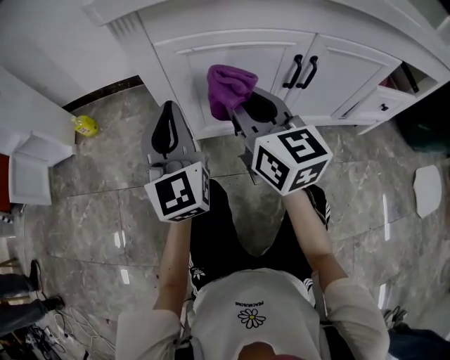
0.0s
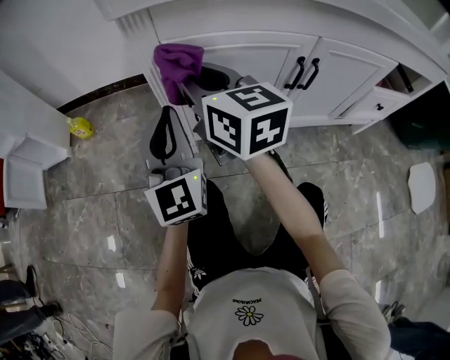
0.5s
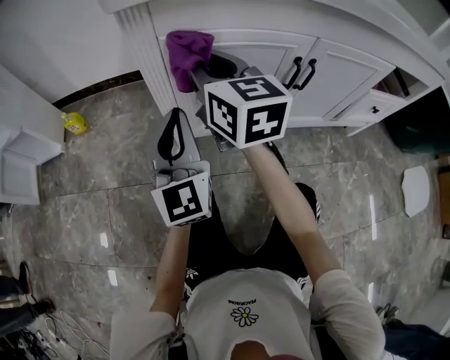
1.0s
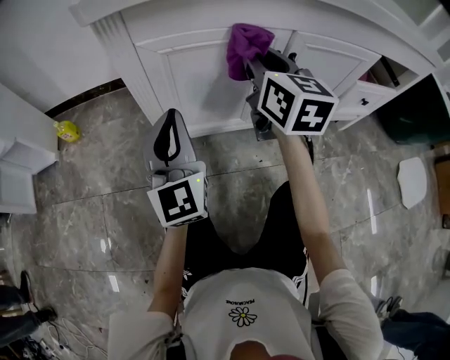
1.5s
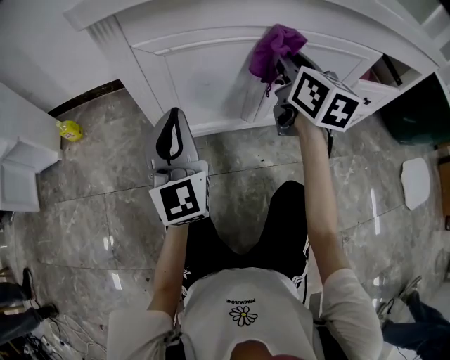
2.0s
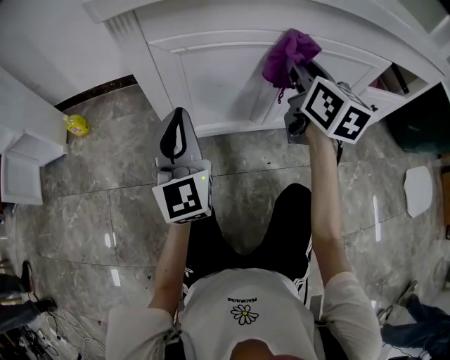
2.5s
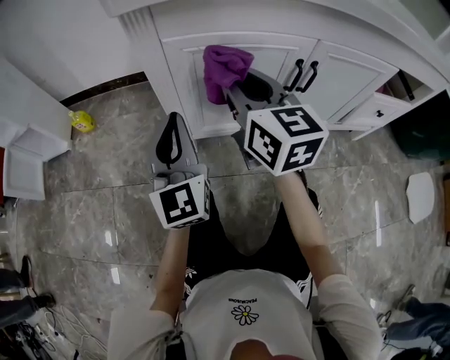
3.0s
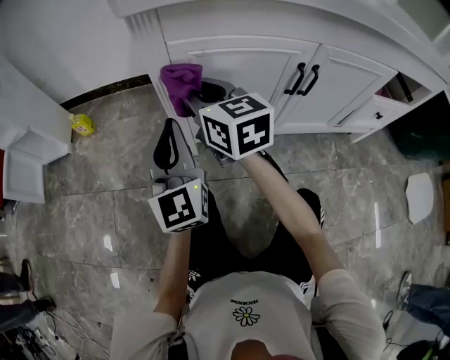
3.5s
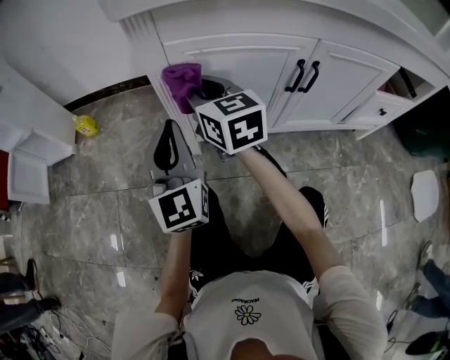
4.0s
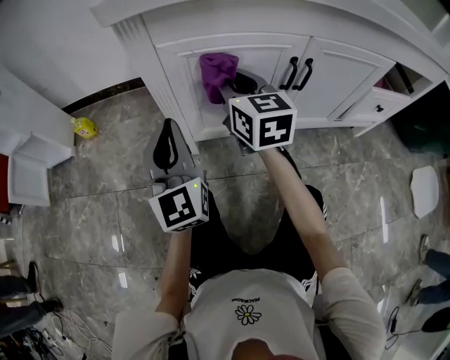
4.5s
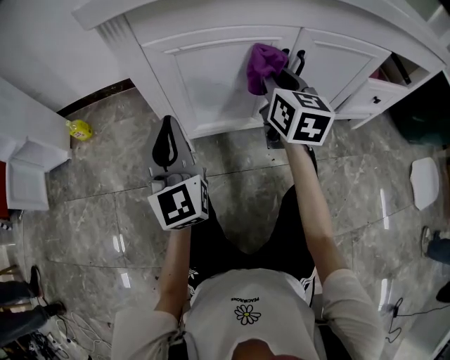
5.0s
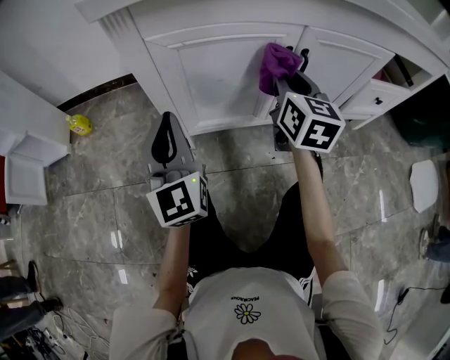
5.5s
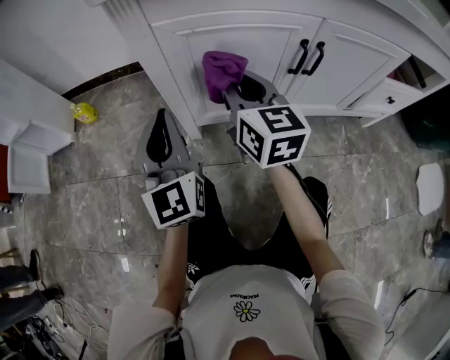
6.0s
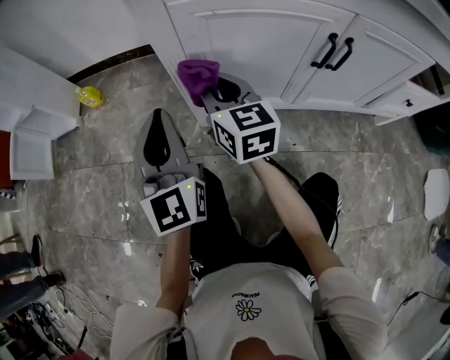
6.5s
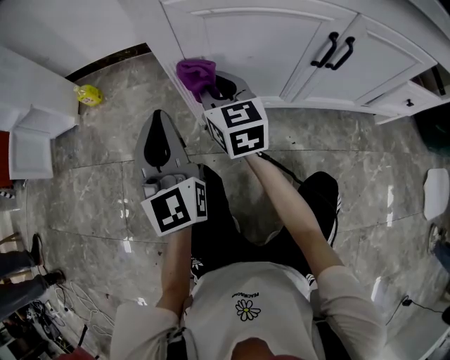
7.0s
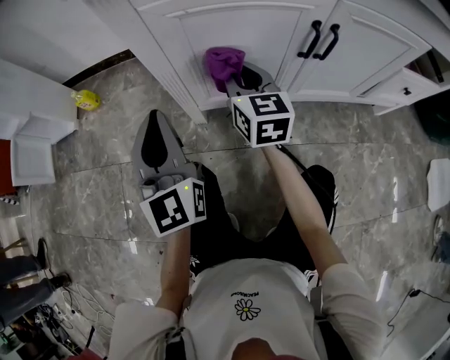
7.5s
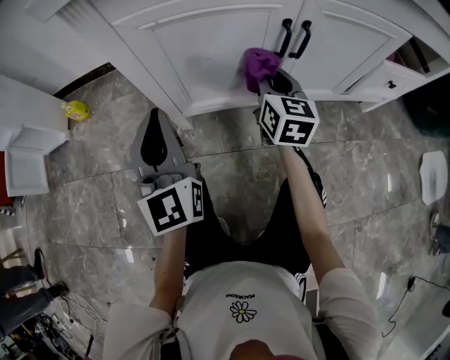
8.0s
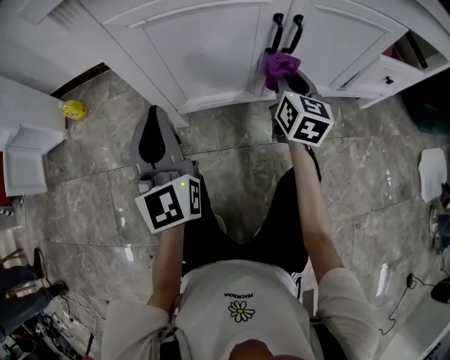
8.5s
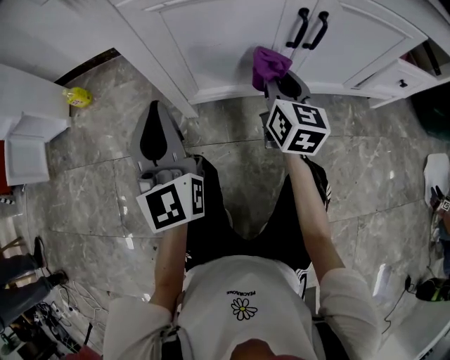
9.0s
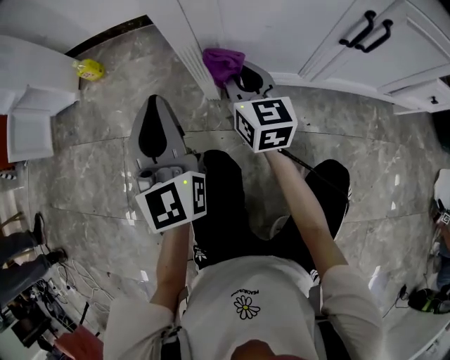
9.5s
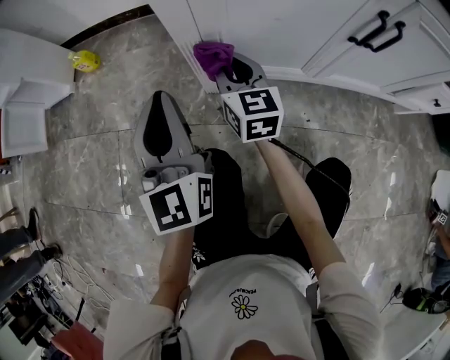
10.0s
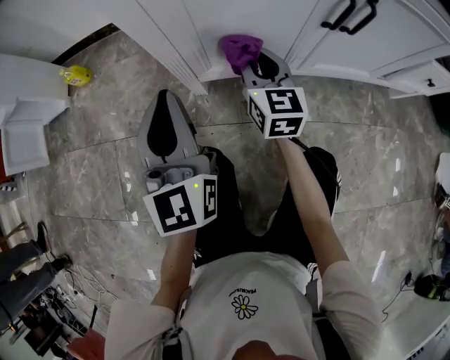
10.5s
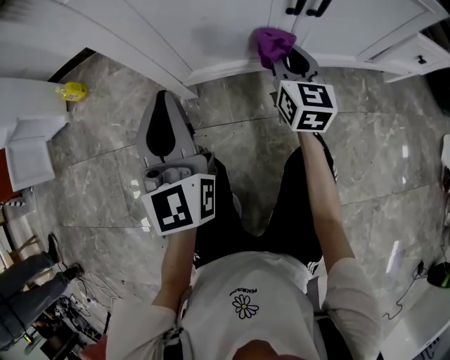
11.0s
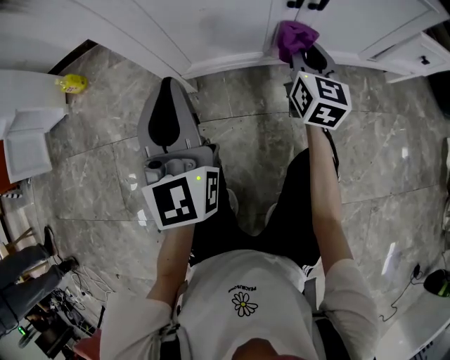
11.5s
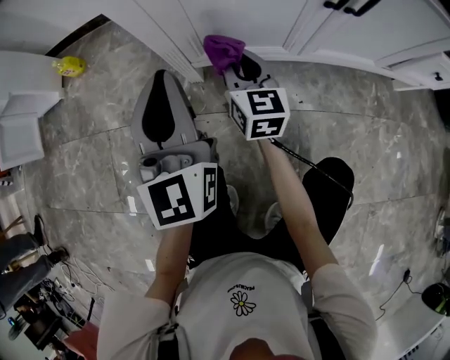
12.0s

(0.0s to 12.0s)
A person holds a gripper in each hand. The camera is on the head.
0.0s - 2.0s: The left gripper moves about 5 cm. Meanwhile the right gripper goes approximately 15 cm to the right, and swivels roughly 20 degrees.
2.0s - 4.0s: The right gripper moves to the left, roughly 25 cm, and rotates approximately 30 degrees. Meanwhile the left gripper goes about 5 cm to the left.
4.0s - 6.0s: The right gripper travels to the right by roughly 10 cm.
6.0s - 8.0s: The right gripper travels to the right and downward by approximately 15 cm.
8.0s - 10.0s: The left gripper moves to the left, approximately 10 cm. Meanwhile the right gripper travels to the left by about 20 cm, and rotates about 20 degrees.
10.0s - 12.0s: The left gripper moves to the right, about 5 cm, while the right gripper reaches some 25 cm to the right, then returns.

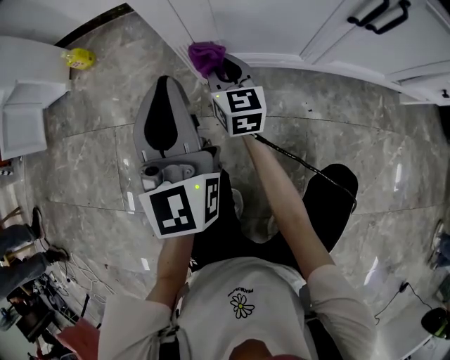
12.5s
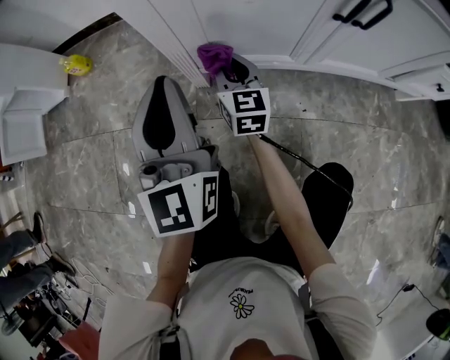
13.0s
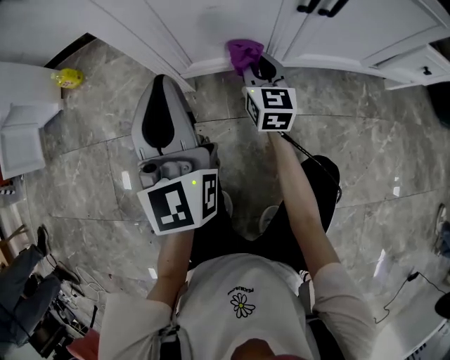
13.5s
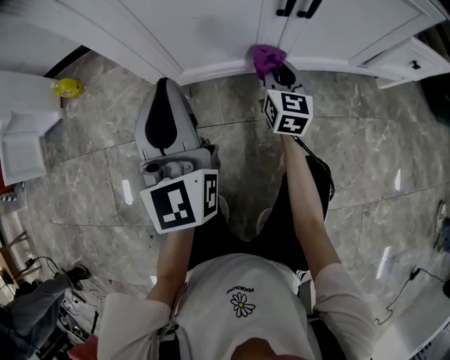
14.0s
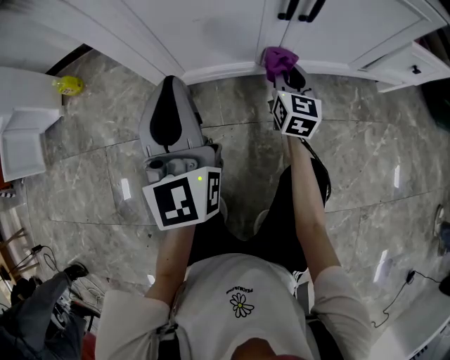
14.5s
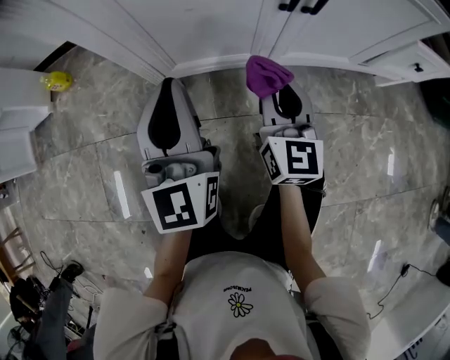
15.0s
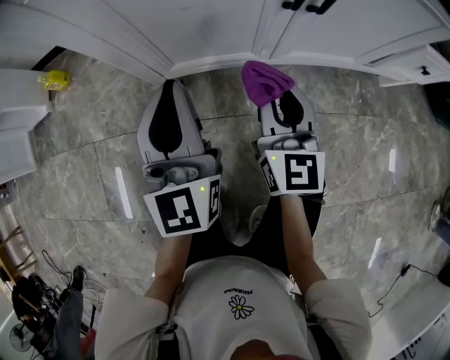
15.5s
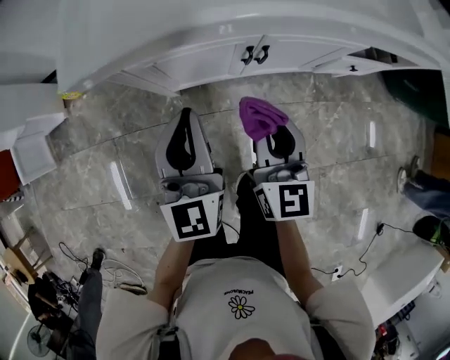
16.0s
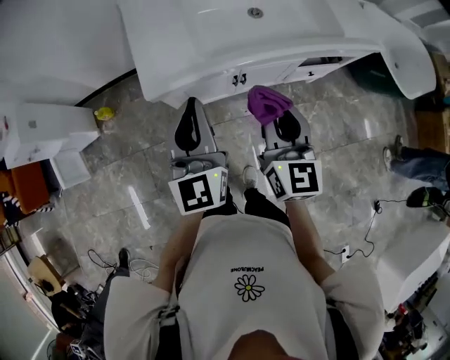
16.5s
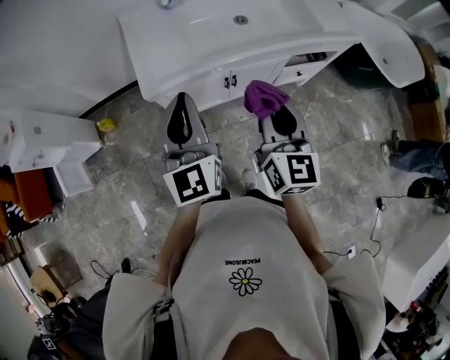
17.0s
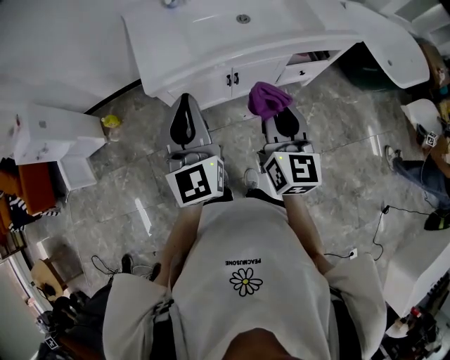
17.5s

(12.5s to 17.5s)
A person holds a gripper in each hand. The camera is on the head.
12.5s - 15.0s: The right gripper goes roughly 25 cm to the right, backward and upward, and rotates about 20 degrees, while the left gripper heads to the right, covering approximately 10 cm.
15.0s - 17.5s: The grippers both shift upward by about 60 cm.

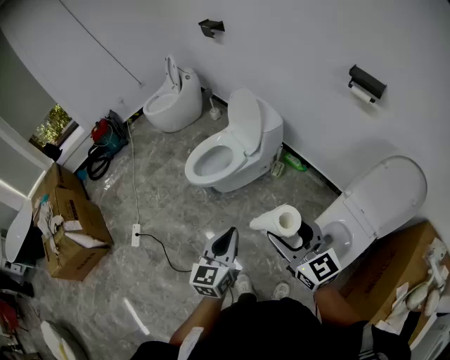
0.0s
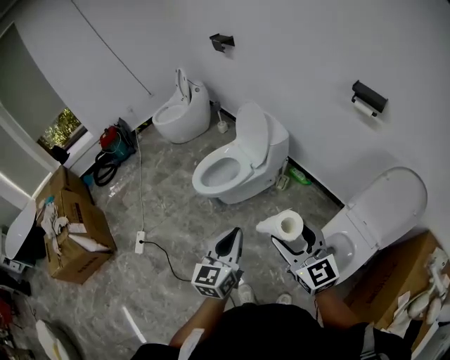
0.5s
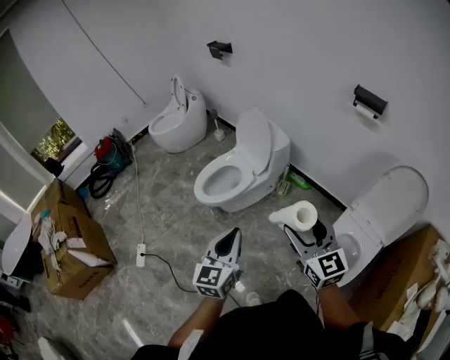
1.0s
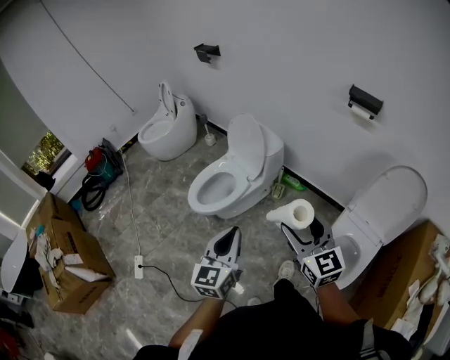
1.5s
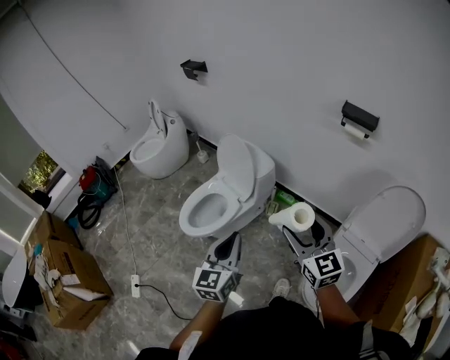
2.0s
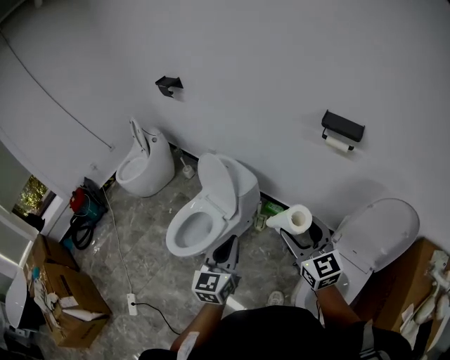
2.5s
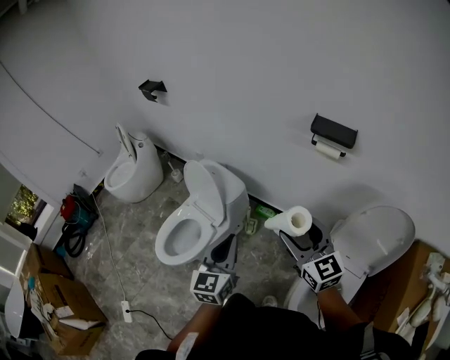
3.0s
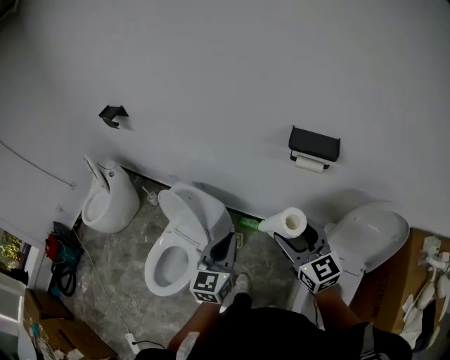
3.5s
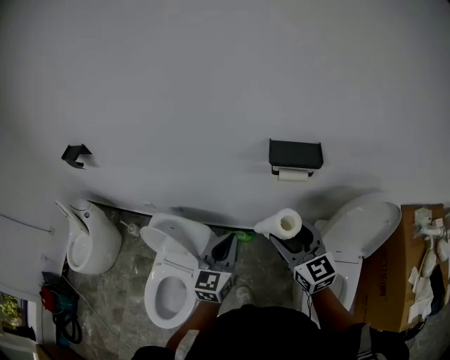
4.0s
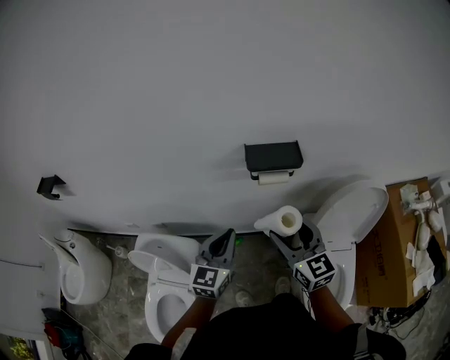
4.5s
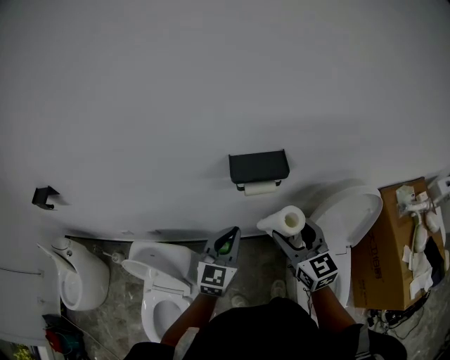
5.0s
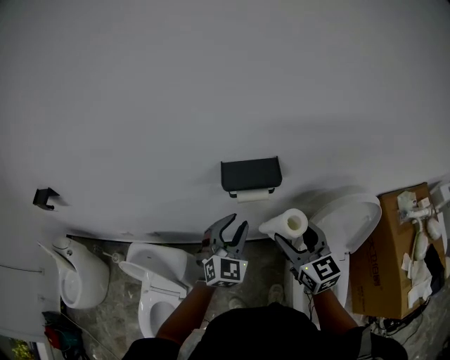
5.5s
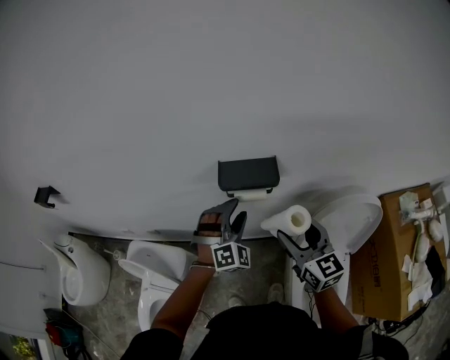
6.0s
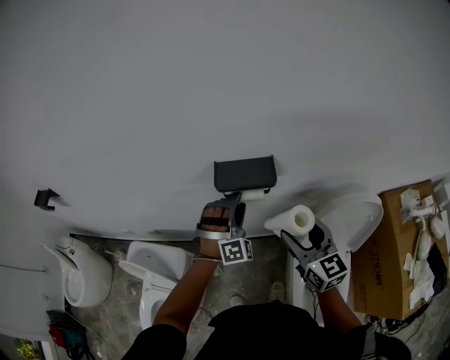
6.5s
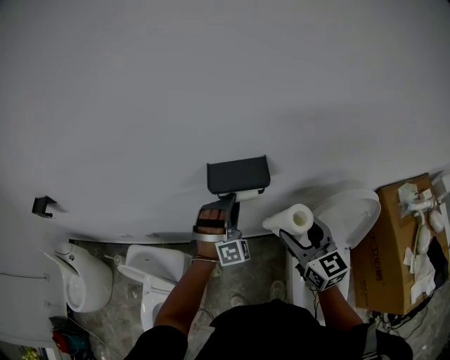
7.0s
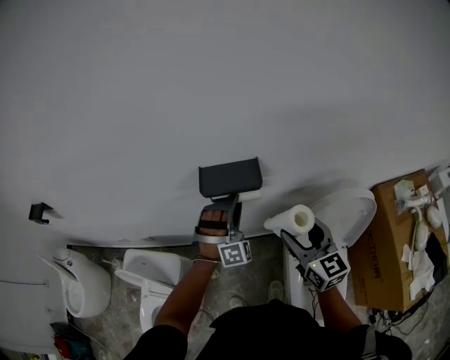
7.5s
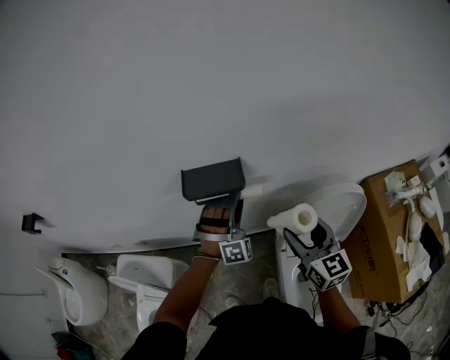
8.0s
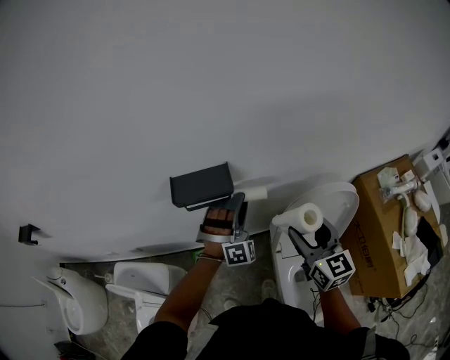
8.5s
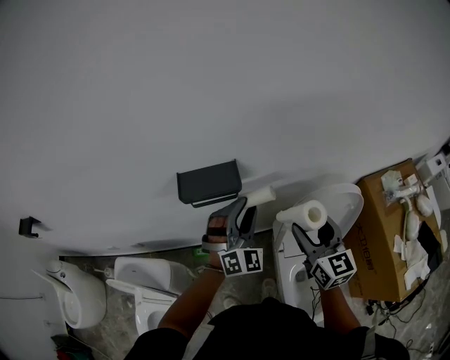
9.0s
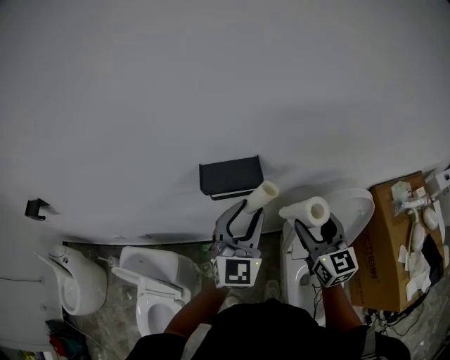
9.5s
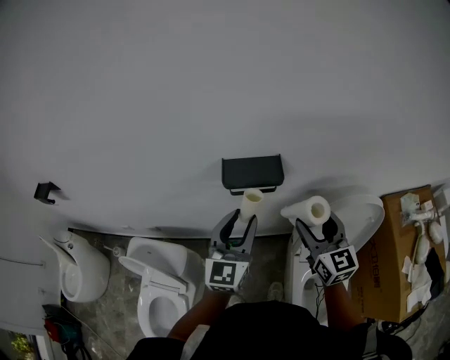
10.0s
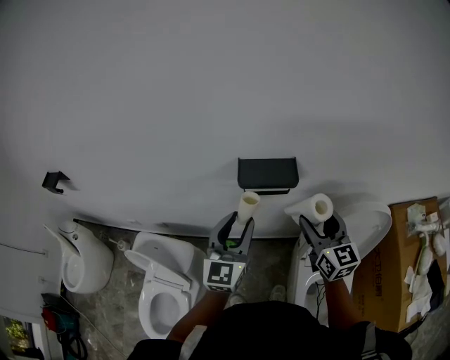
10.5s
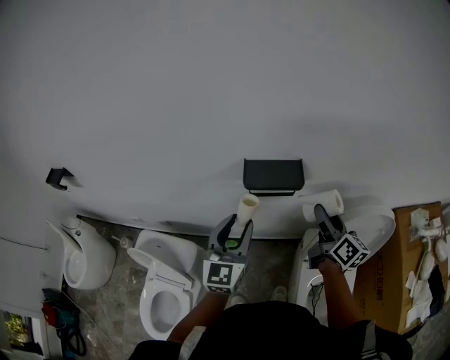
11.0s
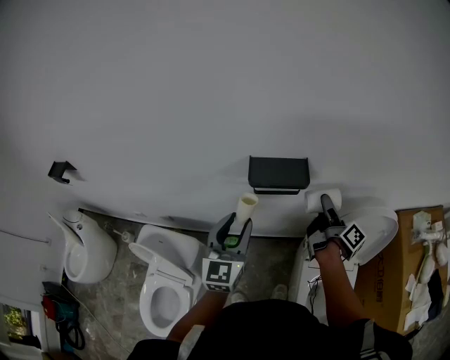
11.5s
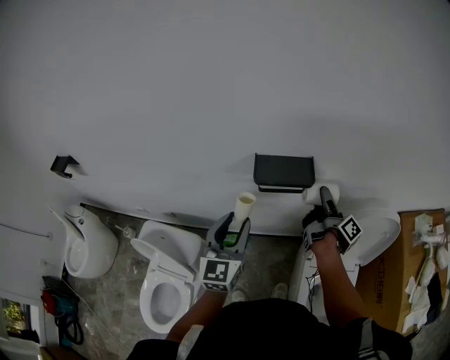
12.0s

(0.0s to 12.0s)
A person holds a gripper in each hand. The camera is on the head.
0.0s - 2.0s: Both grippers move forward, roughly 20 cm. The right gripper turns by about 20 degrees.
2.0s - 4.0s: The right gripper shifts by some 35 cm, and rotates approximately 30 degrees. Meanwhile the left gripper changes place by about 40 cm, and swivels approximately 30 degrees.
4.0s - 6.0s: The right gripper is displaced to the right and forward by roughly 15 cm. Meanwhile the left gripper heads forward and to the right, covering about 25 cm, rolls clockwise, seen from behind, by about 70 degrees, and opens up.
6.0s - 8.0s: The grippers both shift to the right by approximately 10 cm. The left gripper turns by roughly 20 degrees.
8.0s - 10.0s: The left gripper shifts some 15 cm to the left, backward and upward, and rolls counterclockwise, seen from behind, by some 80 degrees; the right gripper moves to the left, roughly 5 cm.
10.0s - 12.0s: The right gripper shifts roughly 15 cm forward and downward, and twists approximately 90 degrees clockwise, seen from behind. The left gripper goes some 10 cm to the left.
